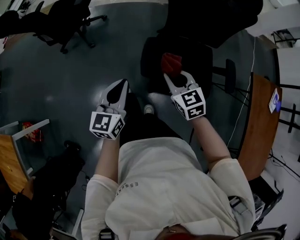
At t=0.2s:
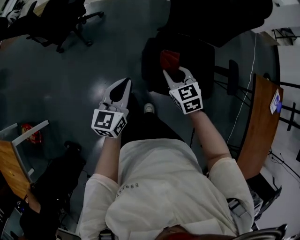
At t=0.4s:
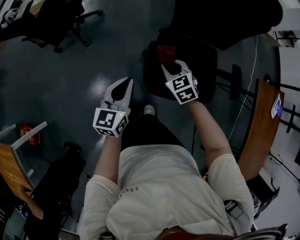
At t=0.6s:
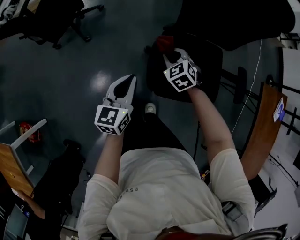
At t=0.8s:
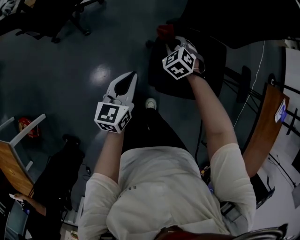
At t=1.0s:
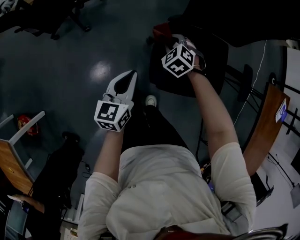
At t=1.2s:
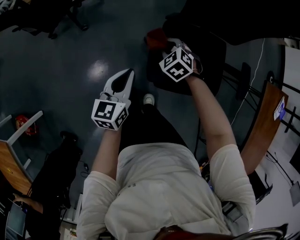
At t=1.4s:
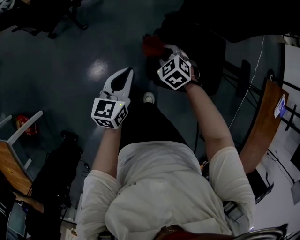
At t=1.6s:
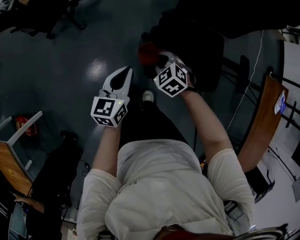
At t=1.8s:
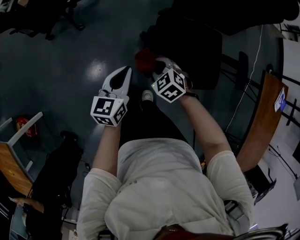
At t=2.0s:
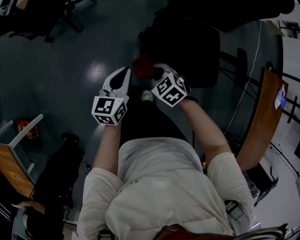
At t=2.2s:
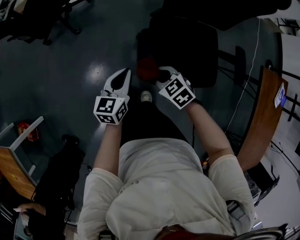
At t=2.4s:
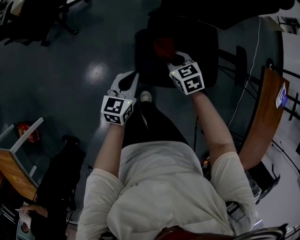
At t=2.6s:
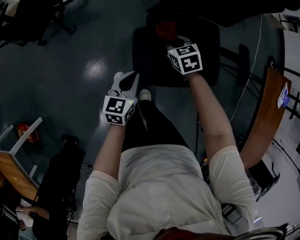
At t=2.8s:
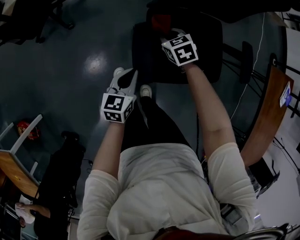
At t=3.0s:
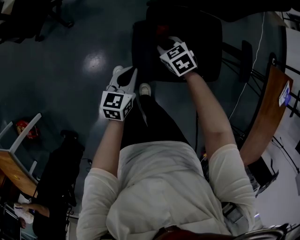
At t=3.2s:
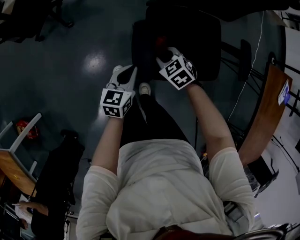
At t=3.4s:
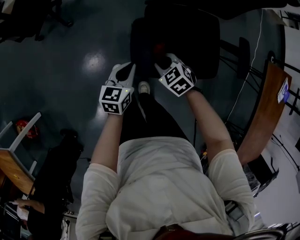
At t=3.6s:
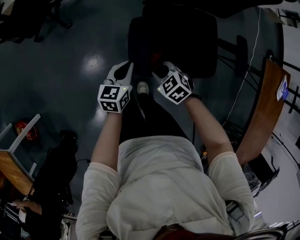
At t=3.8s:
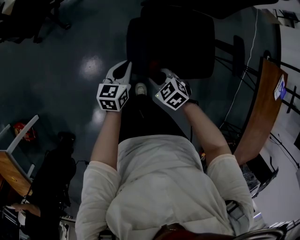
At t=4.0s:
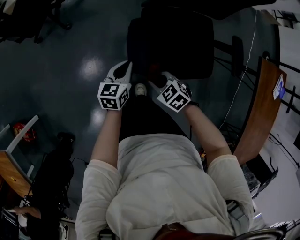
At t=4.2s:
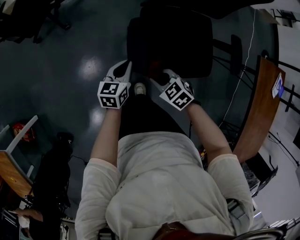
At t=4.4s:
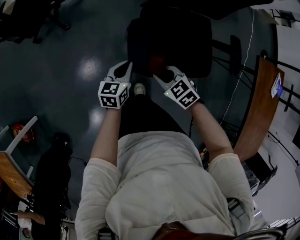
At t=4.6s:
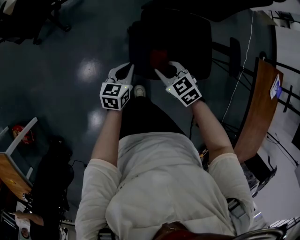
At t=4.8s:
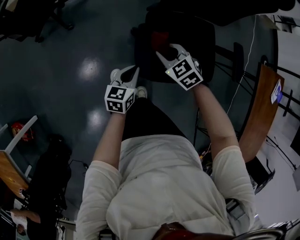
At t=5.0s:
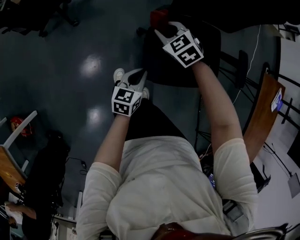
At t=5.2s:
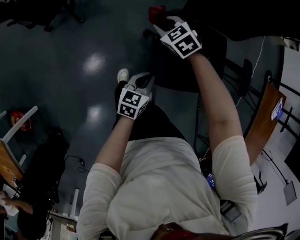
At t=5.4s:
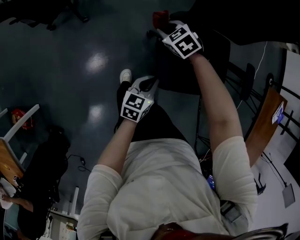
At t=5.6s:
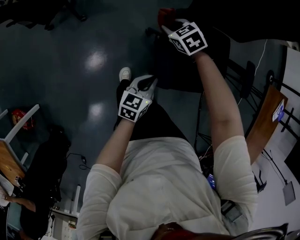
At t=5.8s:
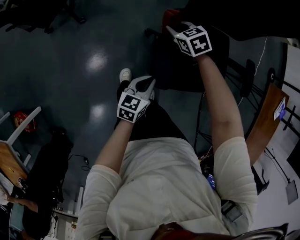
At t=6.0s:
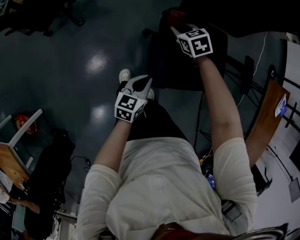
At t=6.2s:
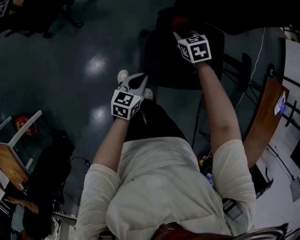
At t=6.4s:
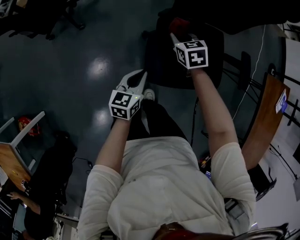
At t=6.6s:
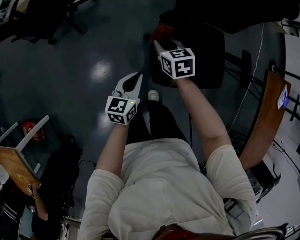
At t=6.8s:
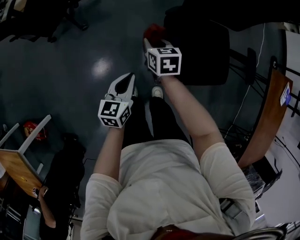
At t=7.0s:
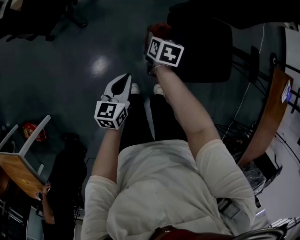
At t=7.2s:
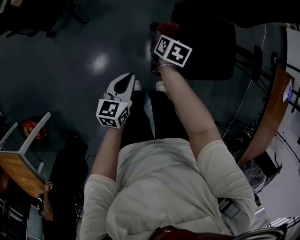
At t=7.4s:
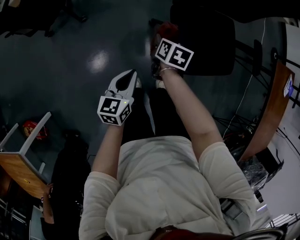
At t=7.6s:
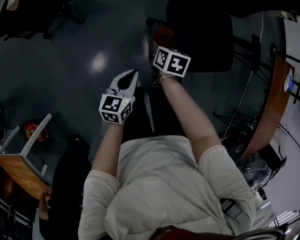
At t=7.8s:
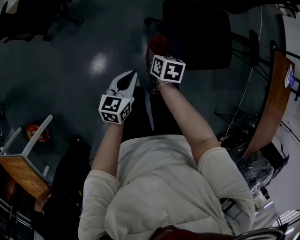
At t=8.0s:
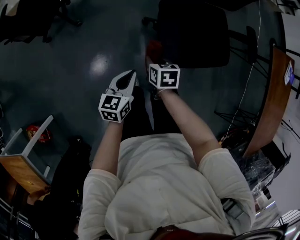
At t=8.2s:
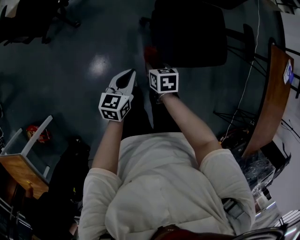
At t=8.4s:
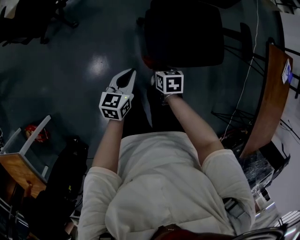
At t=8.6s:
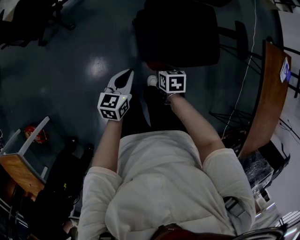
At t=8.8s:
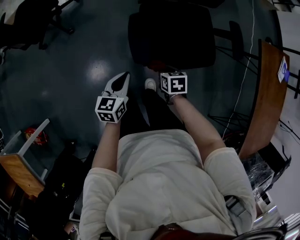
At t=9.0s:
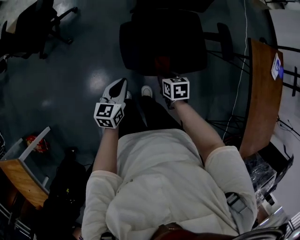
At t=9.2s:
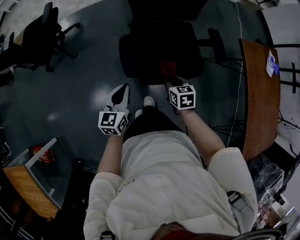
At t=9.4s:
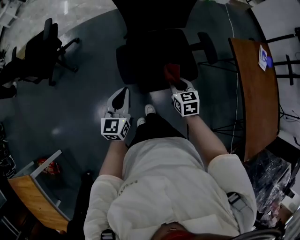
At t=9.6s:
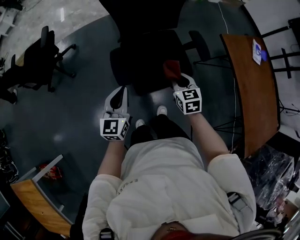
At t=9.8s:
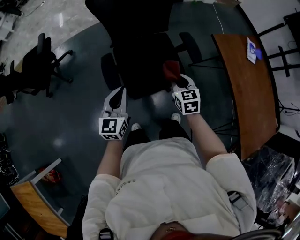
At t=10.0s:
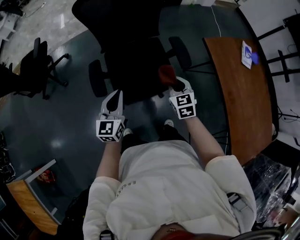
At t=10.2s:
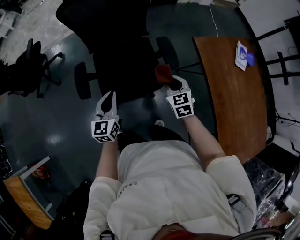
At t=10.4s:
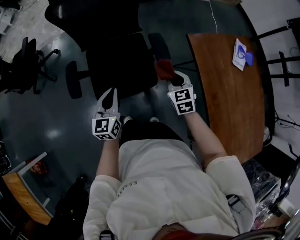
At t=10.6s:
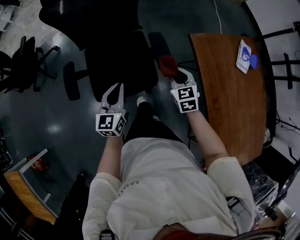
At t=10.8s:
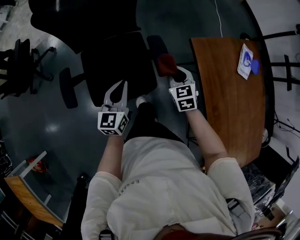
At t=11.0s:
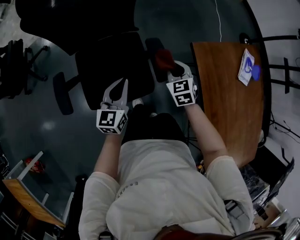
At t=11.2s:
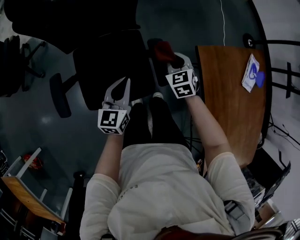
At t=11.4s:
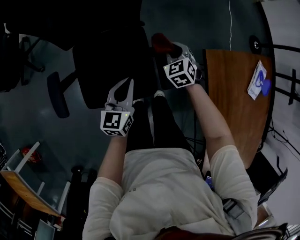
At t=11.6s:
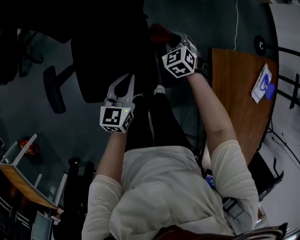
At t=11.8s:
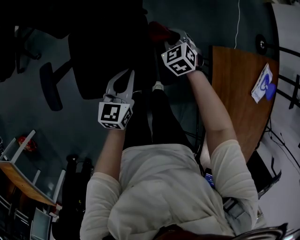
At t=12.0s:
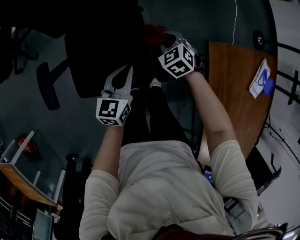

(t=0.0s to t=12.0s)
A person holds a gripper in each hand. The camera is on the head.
t=0.0s - t=1.6s: The two grippers go some 20 cm downward and forward. The right gripper changes its angle by about 30 degrees.
t=1.6s - t=3.0s: The right gripper goes forward and backward, some 15 cm each way, reversing 2 times. The left gripper goes approximately 10 cm downward and to the right.
t=3.0s - t=4.4s: The right gripper is displaced backward and upward by some 15 cm.
t=4.4s - t=6.0s: The right gripper heads forward, covering about 25 cm.
t=6.0s - t=7.6s: The left gripper heads to the left, covering roughly 15 cm. The right gripper heads backward and to the left, covering approximately 20 cm, and rotates around the line of its fingers by about 50 degrees, clockwise from behind.
t=7.6s - t=9.0s: The left gripper goes about 15 cm to the right. The right gripper heads to the right and backward, covering roughly 25 cm.
t=9.0s - t=10.4s: The right gripper is displaced to the right and upward by roughly 40 cm, and swivels some 30 degrees, while the left gripper heads to the right, covering approximately 30 cm.
t=10.4s - t=12.0s: The left gripper is displaced forward, downward and to the right by some 25 cm; the right gripper moves forward and downward, roughly 30 cm, and changes its angle by roughly 30 degrees.

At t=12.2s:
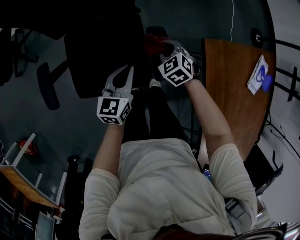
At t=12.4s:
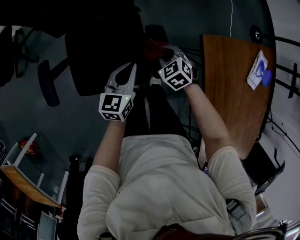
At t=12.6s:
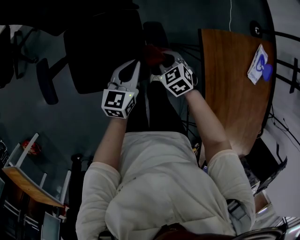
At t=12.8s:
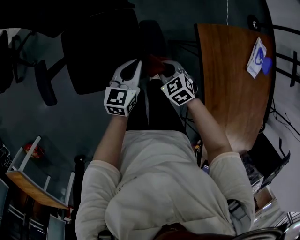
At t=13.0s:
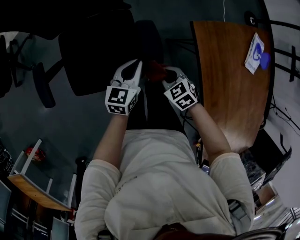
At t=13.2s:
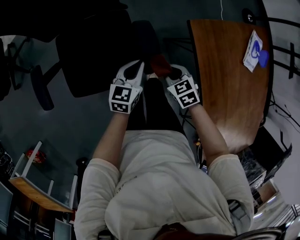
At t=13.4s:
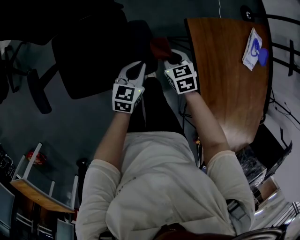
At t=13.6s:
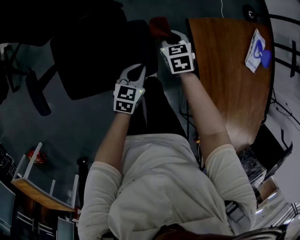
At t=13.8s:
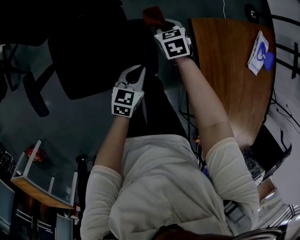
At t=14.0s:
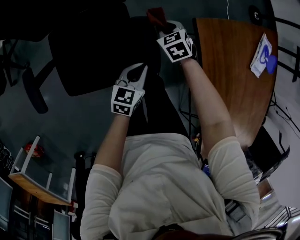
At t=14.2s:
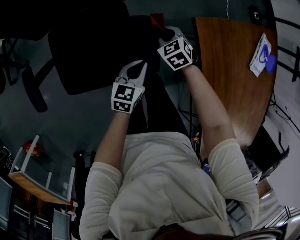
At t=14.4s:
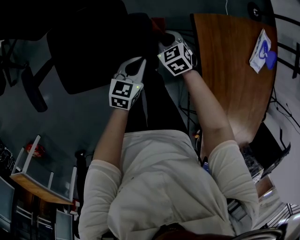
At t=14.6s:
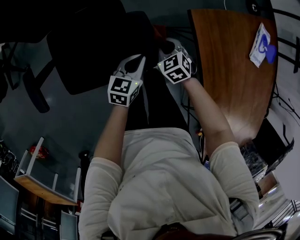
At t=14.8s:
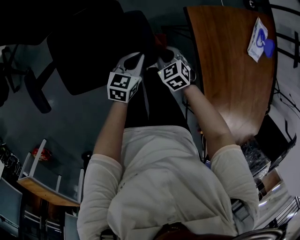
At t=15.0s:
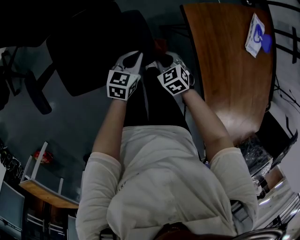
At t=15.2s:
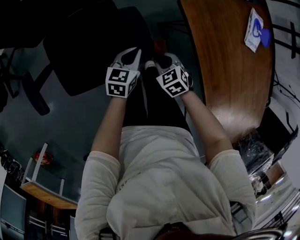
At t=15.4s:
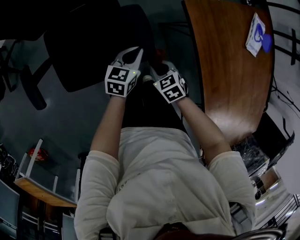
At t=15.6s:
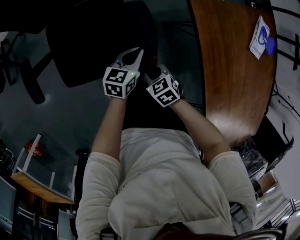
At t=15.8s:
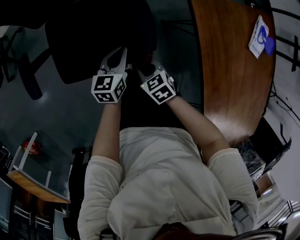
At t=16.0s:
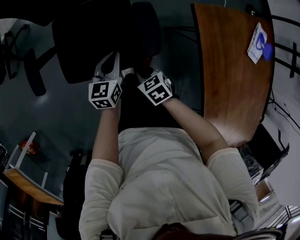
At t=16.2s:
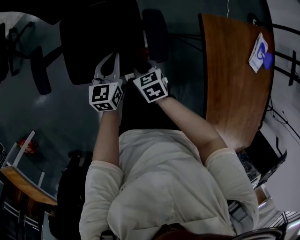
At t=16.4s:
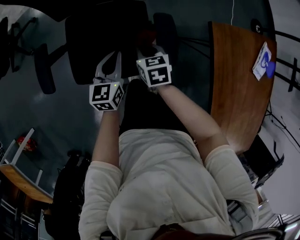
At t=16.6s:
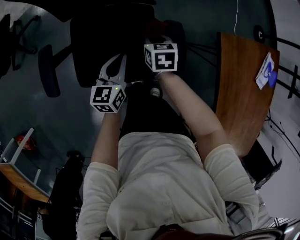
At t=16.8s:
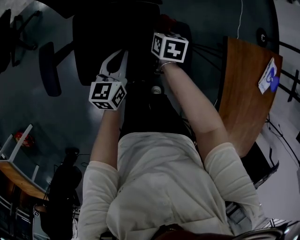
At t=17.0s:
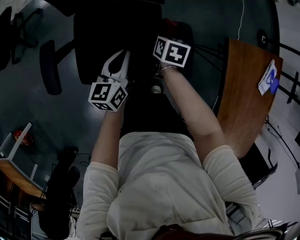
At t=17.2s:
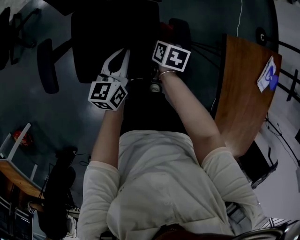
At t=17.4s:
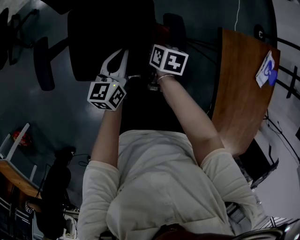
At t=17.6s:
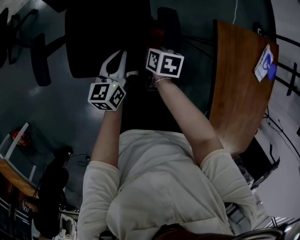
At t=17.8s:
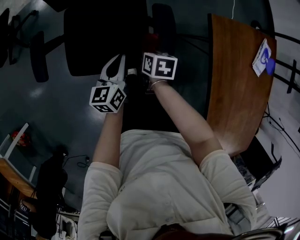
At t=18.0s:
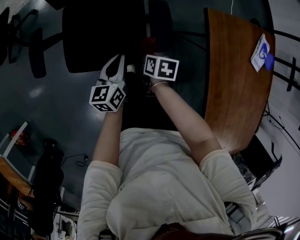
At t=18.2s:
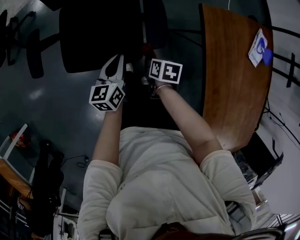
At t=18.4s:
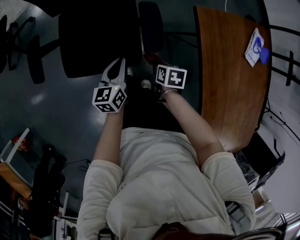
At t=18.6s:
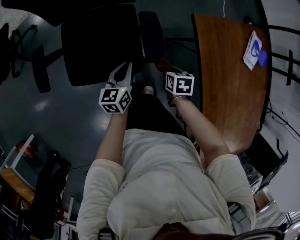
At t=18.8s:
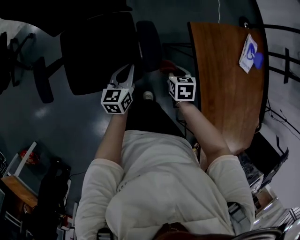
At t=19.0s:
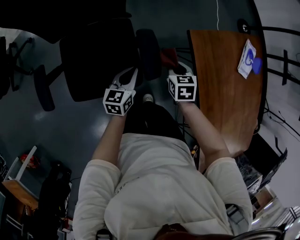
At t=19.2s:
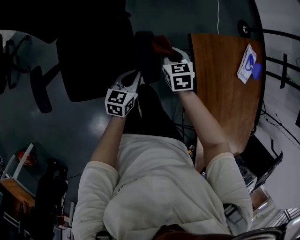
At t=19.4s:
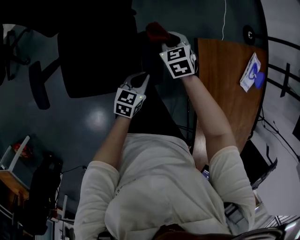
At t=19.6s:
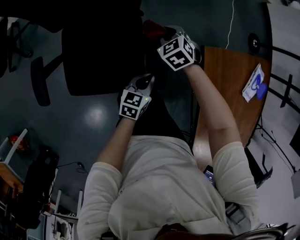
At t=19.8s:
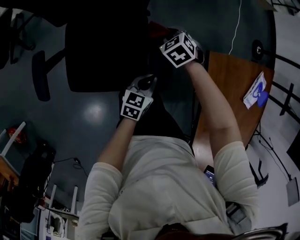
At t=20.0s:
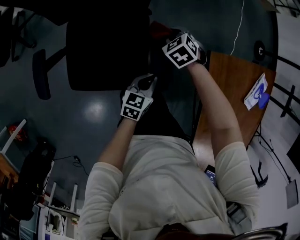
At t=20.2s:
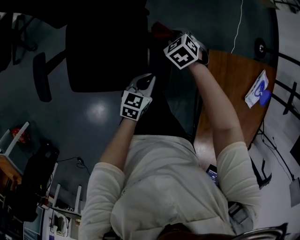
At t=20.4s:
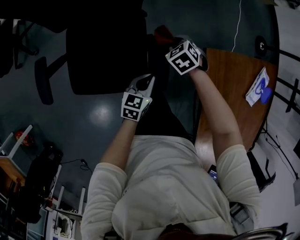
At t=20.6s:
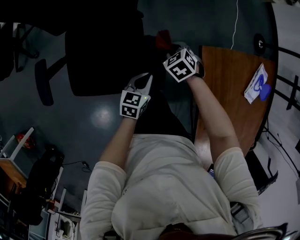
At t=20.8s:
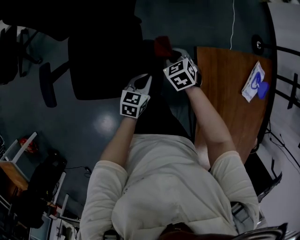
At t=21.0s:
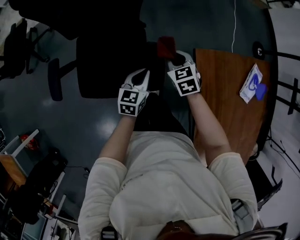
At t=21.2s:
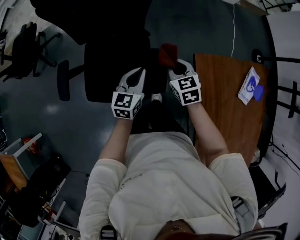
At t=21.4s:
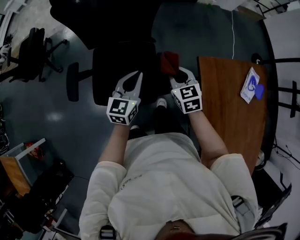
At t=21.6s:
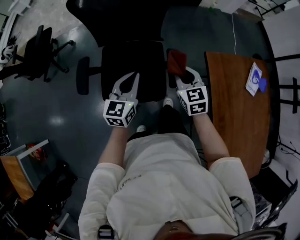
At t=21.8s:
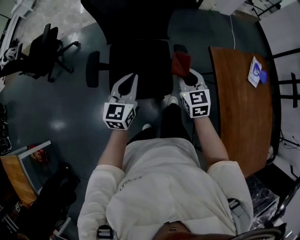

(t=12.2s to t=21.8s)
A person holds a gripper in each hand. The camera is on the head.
t=12.2s - t=13.8s: The left gripper is displaced to the right and downward by approximately 15 cm, and turns by roughly 20 degrees; the right gripper travels to the right by some 10 cm, moves approximately 15 cm backward and comes back, and rotates roughly 30 degrees.
t=13.8s - t=15.4s: The right gripper shifts approximately 25 cm backward.
t=15.4s - t=17.0s: The left gripper heads to the left, covering approximately 20 cm, and swivels some 30 degrees. Meanwhile the right gripper shifts about 25 cm forward and to the left, and changes its angle by about 30 degrees.
t=17.0s - t=18.6s: The right gripper goes approximately 25 cm backward and to the right. Meanwhile the left gripper is displaced backward and to the right by about 15 cm.
t=18.6s - t=20.2s: The left gripper heads to the right and forward, covering about 10 cm. Meanwhile the right gripper is displaced forward and to the left by roughly 30 cm, and rolls counterclockwise, seen from behind, by approximately 60 degrees.
t=20.2s - t=21.8s: The left gripper moves upward and to the left, about 35 cm, and turns by about 30 degrees. The right gripper heads upward and backward, covering some 35 cm, and tips its fingers upward by about 40 degrees.

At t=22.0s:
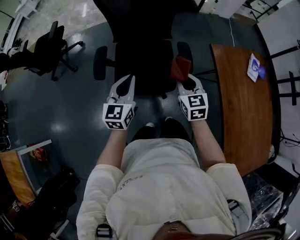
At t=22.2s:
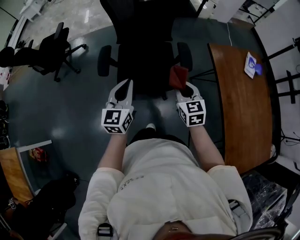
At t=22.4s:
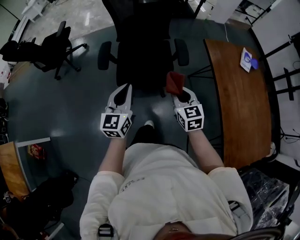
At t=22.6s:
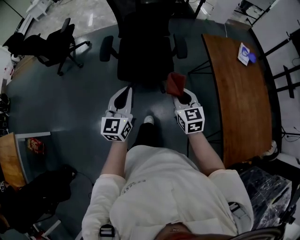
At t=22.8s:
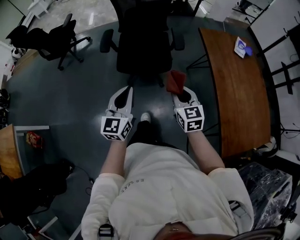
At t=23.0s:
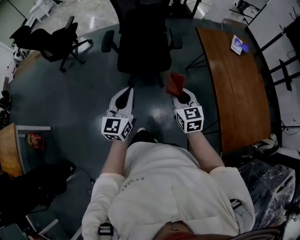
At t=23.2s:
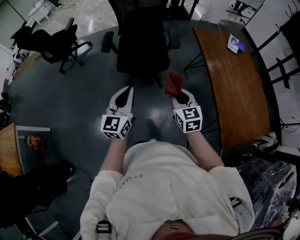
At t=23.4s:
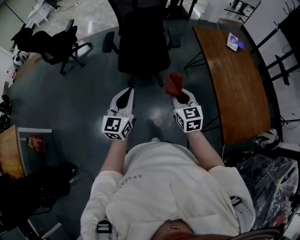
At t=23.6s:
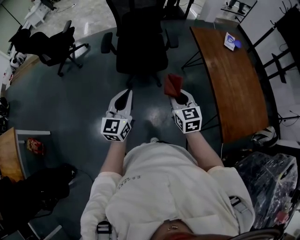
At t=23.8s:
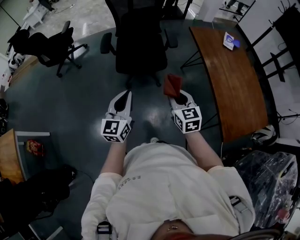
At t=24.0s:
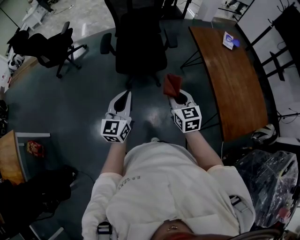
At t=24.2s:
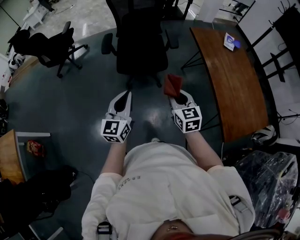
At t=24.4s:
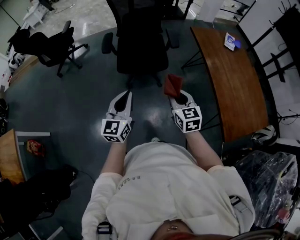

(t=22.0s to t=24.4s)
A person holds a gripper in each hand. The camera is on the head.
t=22.0s - t=23.2s: Both grippers travel together backward, about 35 cm.
t=23.2s - t=24.4s: The grippers make only small movements.
